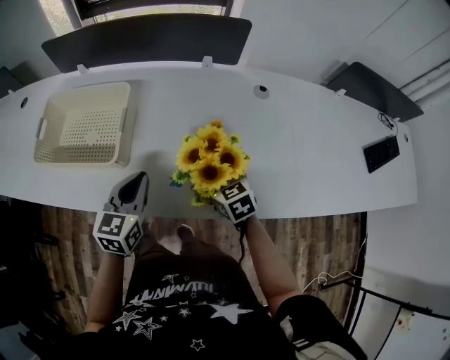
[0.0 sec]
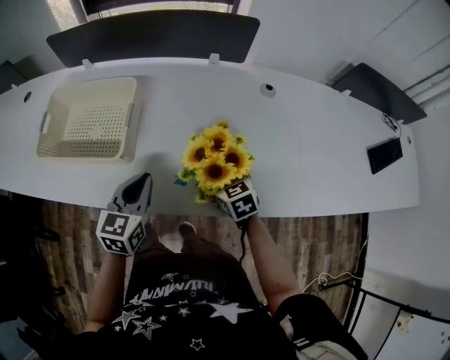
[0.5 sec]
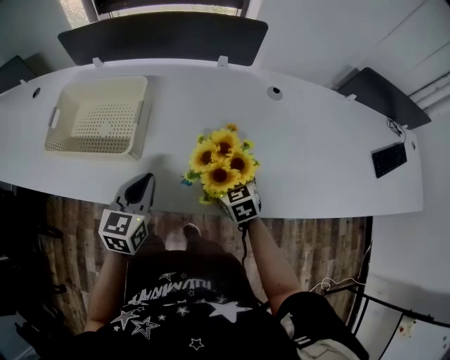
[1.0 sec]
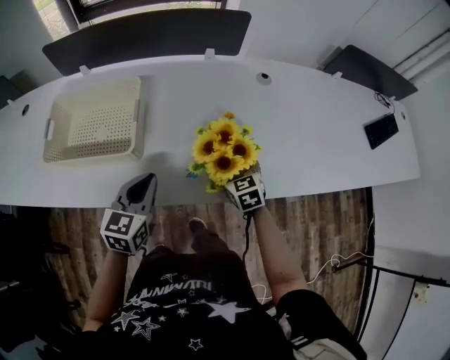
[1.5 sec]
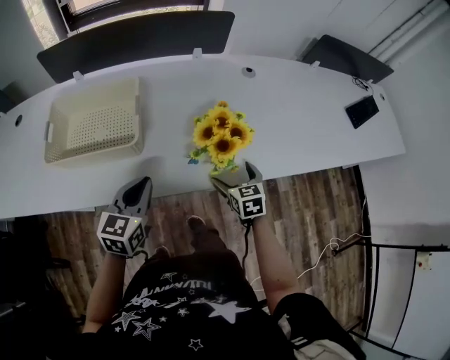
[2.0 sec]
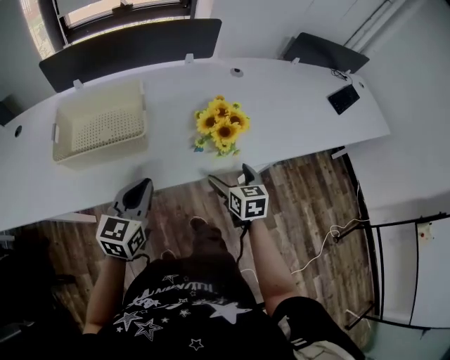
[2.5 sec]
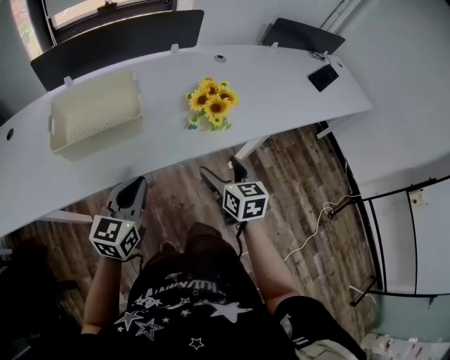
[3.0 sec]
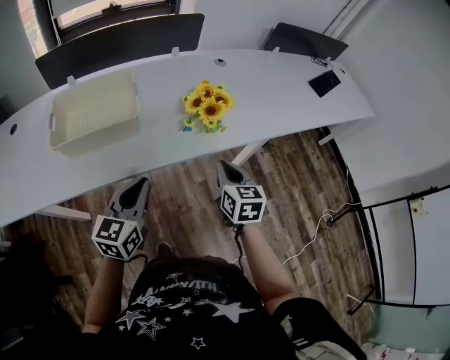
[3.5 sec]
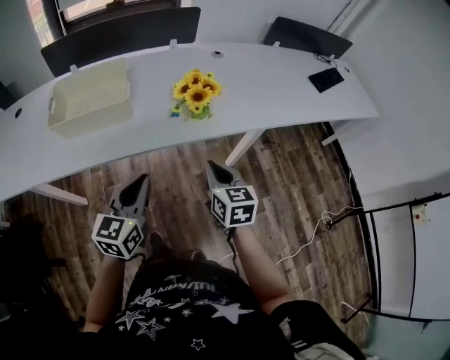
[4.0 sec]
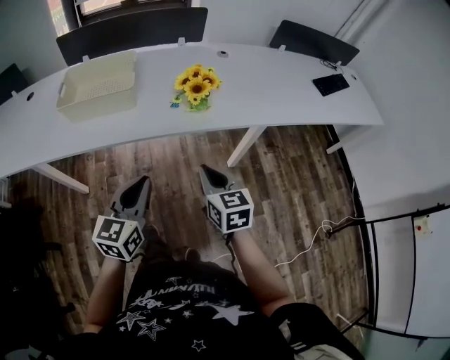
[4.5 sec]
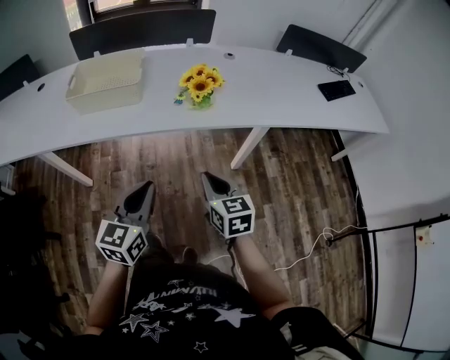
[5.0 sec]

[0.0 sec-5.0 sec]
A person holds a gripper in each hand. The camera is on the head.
0.0 sec to 2.5 sec: The right gripper moves approximately 15 cm, and rotates roughly 40 degrees. Meanwhile the left gripper moves some 15 cm, and swivels approximately 20 degrees.
2.5 sec to 5.0 sec: The right gripper shifts approximately 25 cm backward, and closes; the left gripper is displaced backward and to the right by about 25 cm.

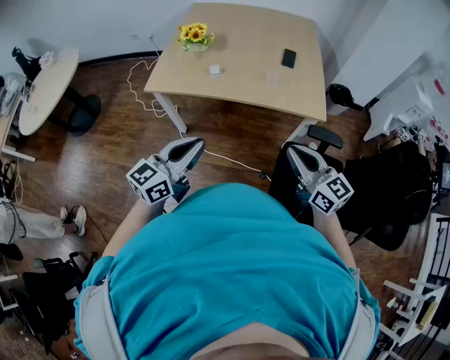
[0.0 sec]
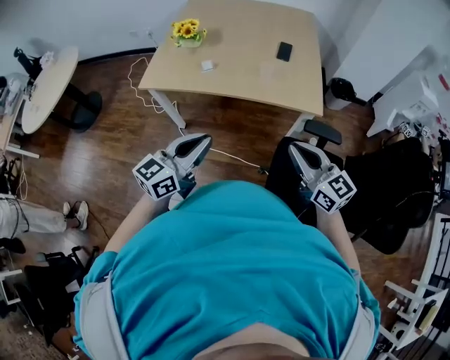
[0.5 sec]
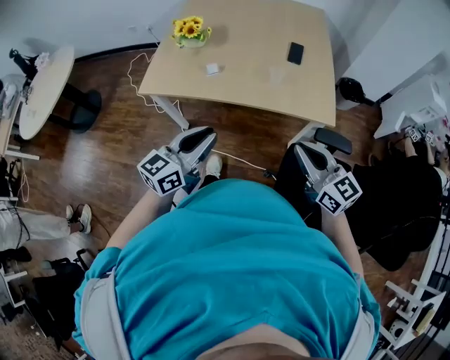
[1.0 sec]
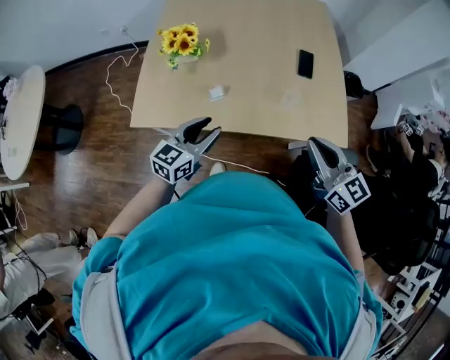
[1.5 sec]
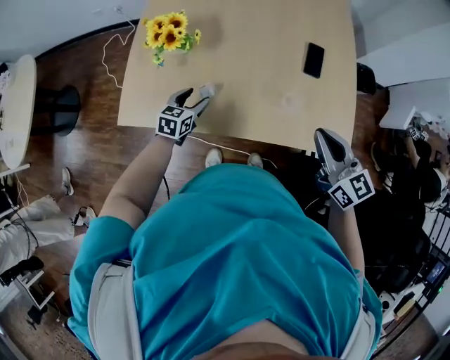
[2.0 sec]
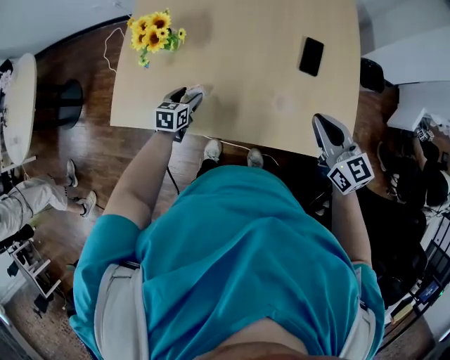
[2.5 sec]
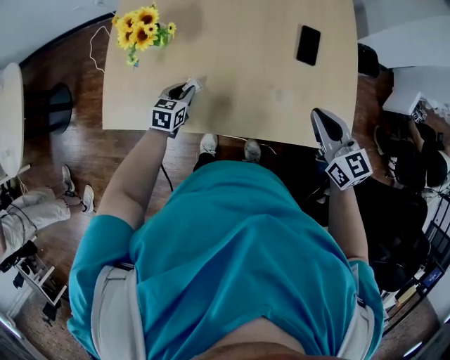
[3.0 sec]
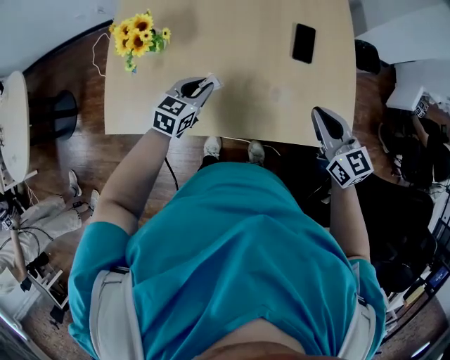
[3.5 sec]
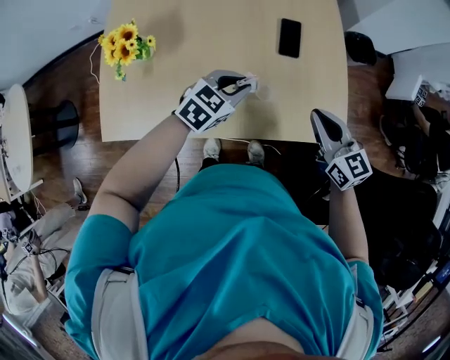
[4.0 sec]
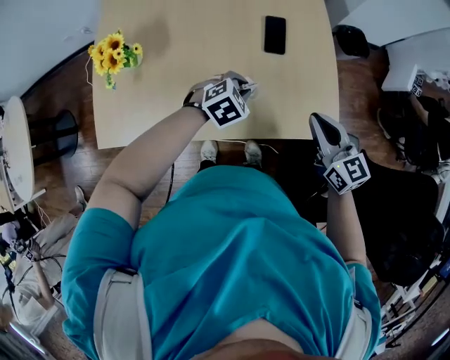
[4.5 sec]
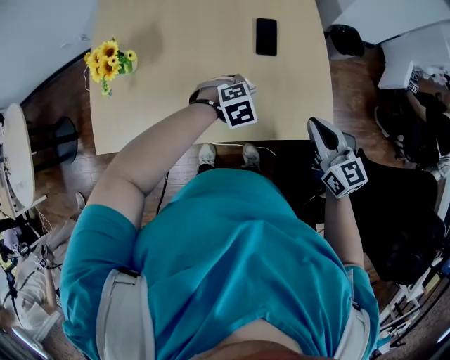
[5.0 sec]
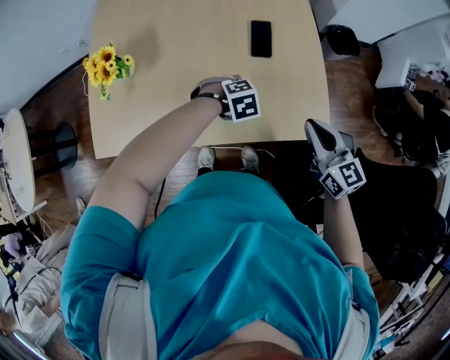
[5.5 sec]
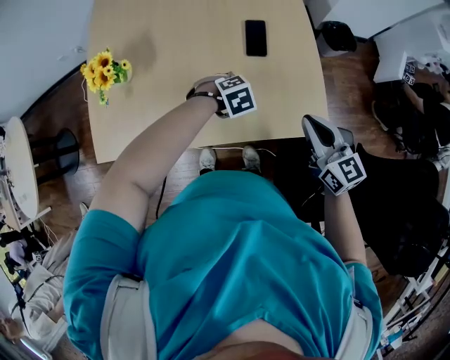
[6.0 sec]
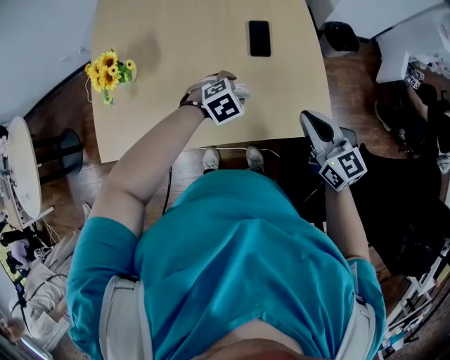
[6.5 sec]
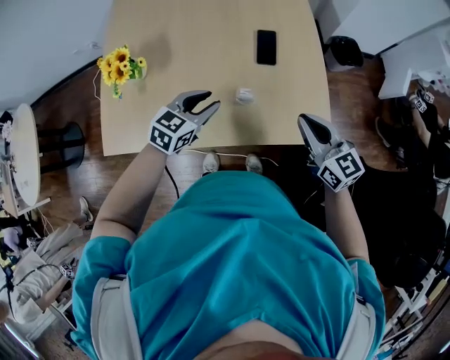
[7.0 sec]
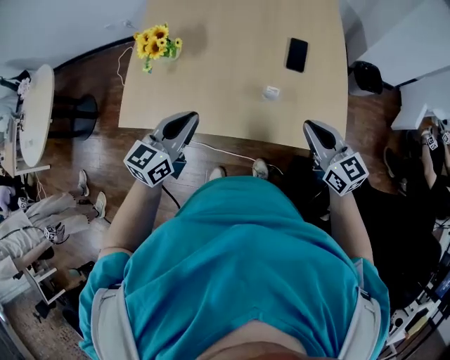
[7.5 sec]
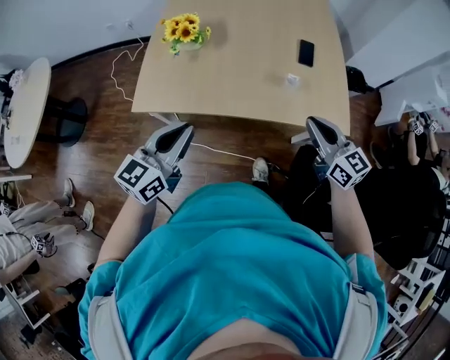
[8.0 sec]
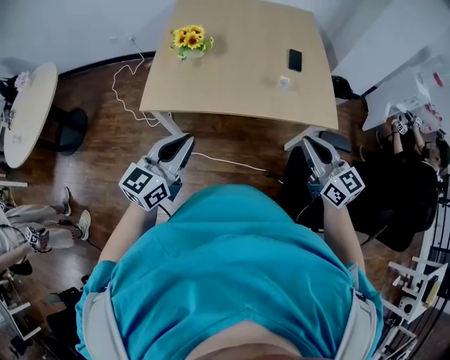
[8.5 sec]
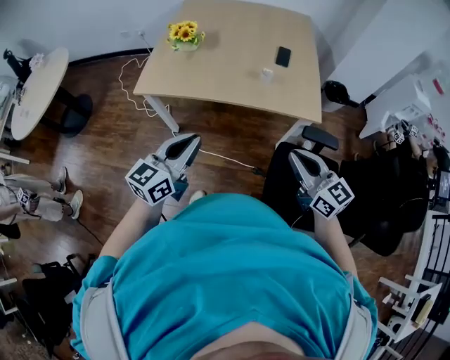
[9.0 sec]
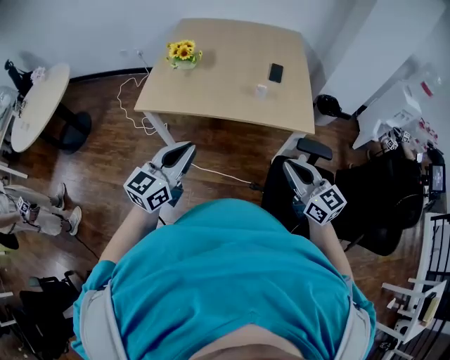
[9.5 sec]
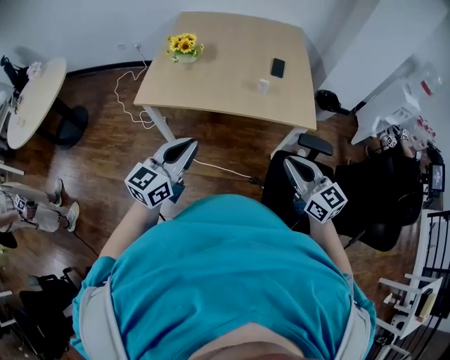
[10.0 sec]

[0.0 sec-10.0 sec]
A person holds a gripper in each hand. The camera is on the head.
0.0 sec to 2.0 sec: The right gripper moves forward, approximately 35 cm. The left gripper travels forward and downward by approximately 60 cm, angles its fingers downward, by roughly 40 degrees, and opens up.
2.0 sec to 4.0 sec: The right gripper goes about 10 cm to the right and downward, while the left gripper travels to the right by about 25 cm, turns by roughly 40 degrees, and closes its fingers.
4.0 sec to 6.0 sec: The left gripper shifts some 10 cm downward, and angles its fingers downward, by some 40 degrees. The right gripper changes place by some 5 cm.
6.0 sec to 8.0 sec: The right gripper shifts by roughly 25 cm. Meanwhile the left gripper changes place by some 50 cm, points its fingers about 70 degrees further upward, and closes up.
8.0 sec to 10.0 sec: The grippers both shift backward by roughly 20 cm.

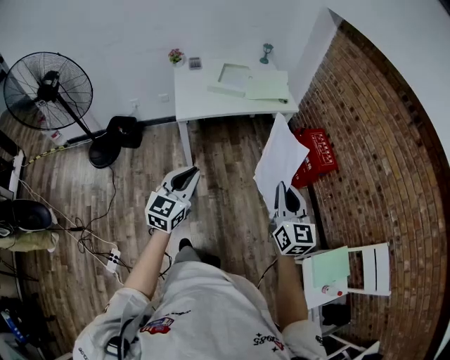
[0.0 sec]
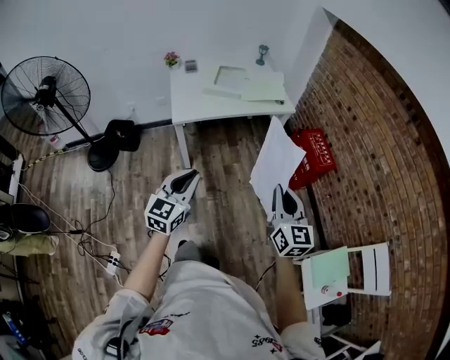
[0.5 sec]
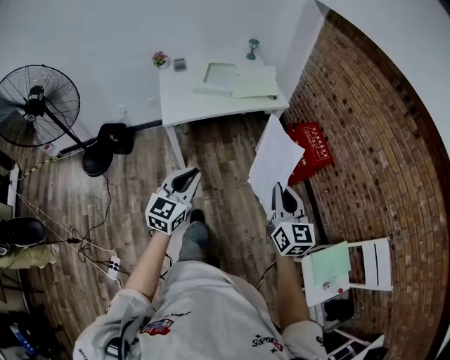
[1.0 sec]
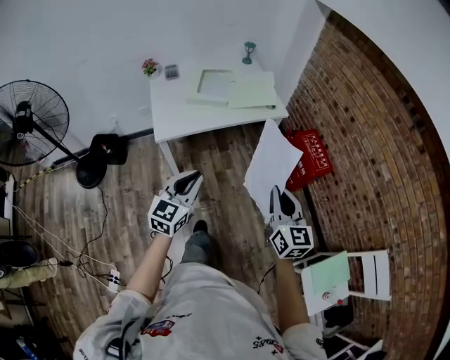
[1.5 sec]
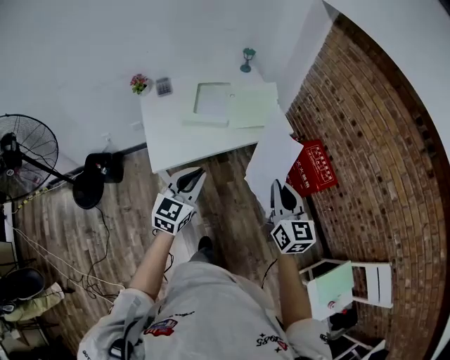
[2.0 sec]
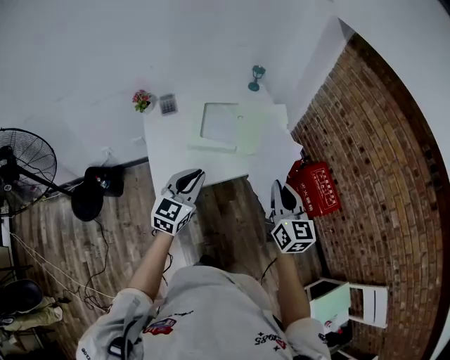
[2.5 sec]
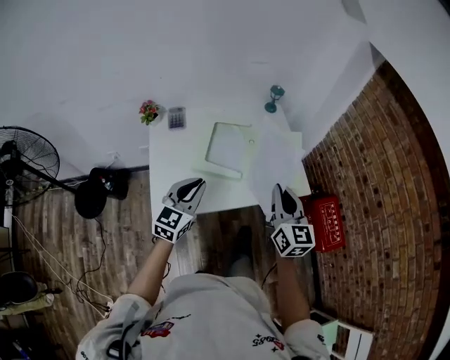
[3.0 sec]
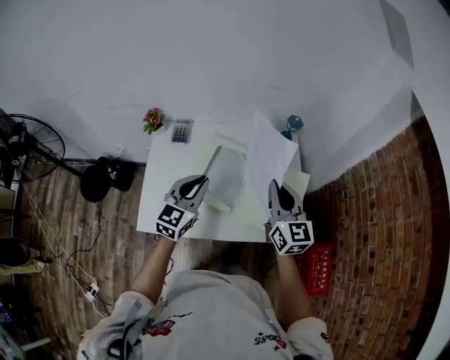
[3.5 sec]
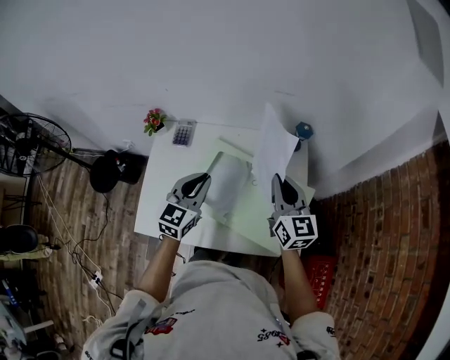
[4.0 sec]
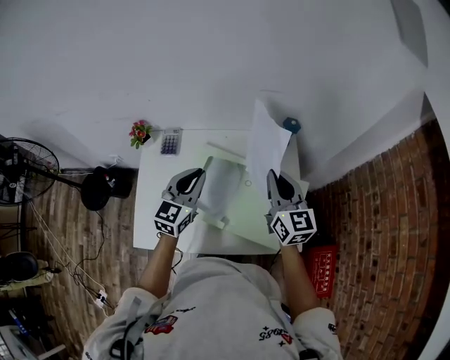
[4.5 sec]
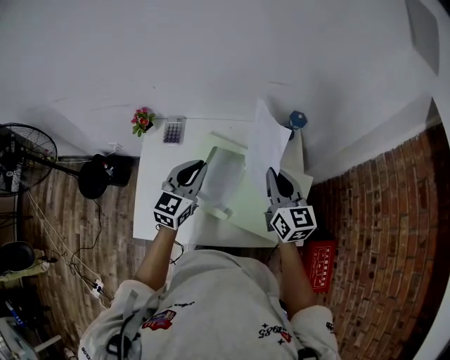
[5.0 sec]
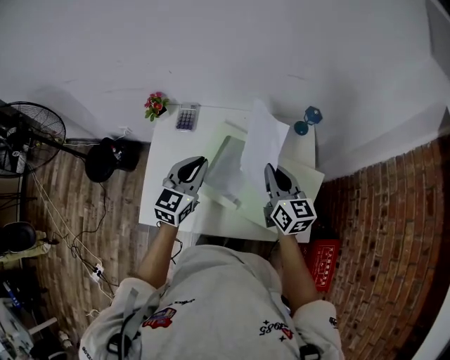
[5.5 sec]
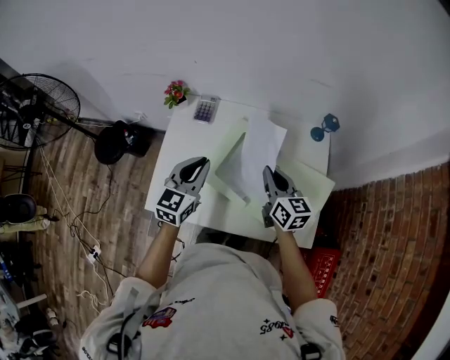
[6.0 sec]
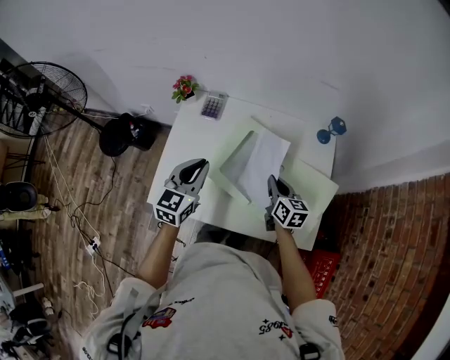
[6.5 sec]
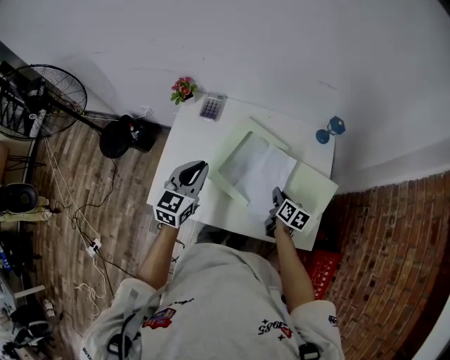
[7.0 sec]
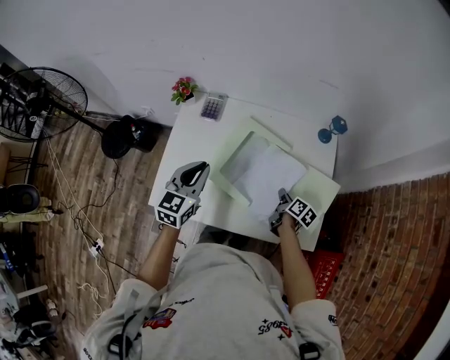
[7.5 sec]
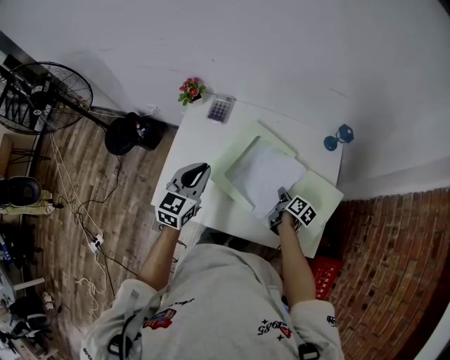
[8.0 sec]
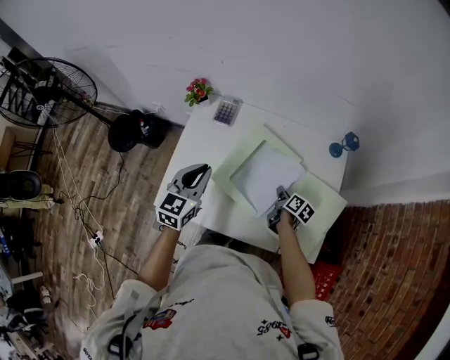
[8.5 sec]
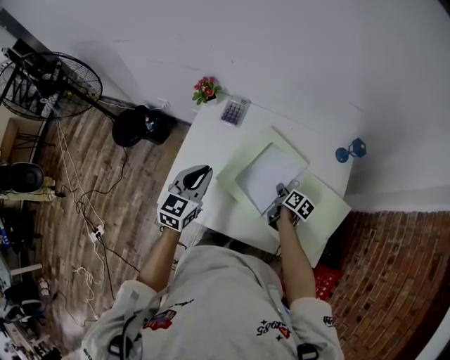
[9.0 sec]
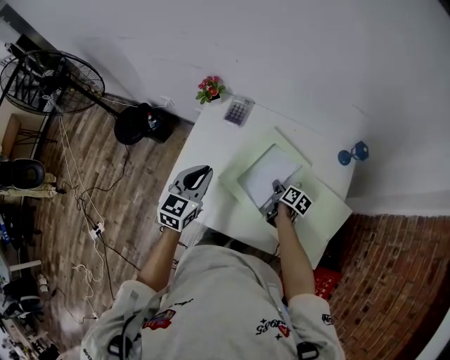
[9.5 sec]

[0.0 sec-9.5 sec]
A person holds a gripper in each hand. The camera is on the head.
0.0 sec to 2.0 sec: The grippers both shift forward by some 30 cm.
2.0 sec to 4.0 sec: Both grippers are carried roughly 50 cm. The right gripper turns by roughly 30 degrees, while the left gripper rotates approximately 30 degrees.
4.0 sec to 5.5 sec: The left gripper is displaced to the left by about 5 cm. Meanwhile the right gripper heads to the left and downward, covering approximately 10 cm.
5.5 sec to 7.5 sec: The right gripper moves downward, some 25 cm, and rotates around the line of its fingers by some 50 degrees, clockwise from behind, while the left gripper is displaced to the left by some 5 cm.
7.5 sec to 9.5 sec: The right gripper goes roughly 15 cm to the left and forward, while the left gripper shifts approximately 5 cm to the left.

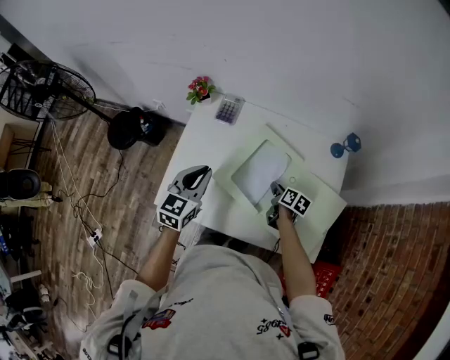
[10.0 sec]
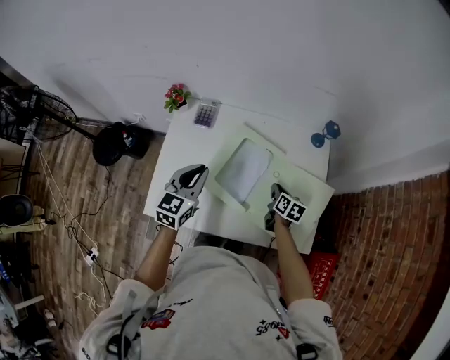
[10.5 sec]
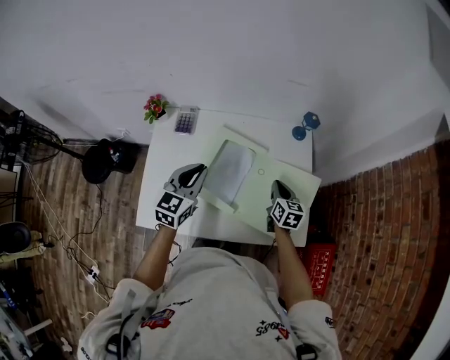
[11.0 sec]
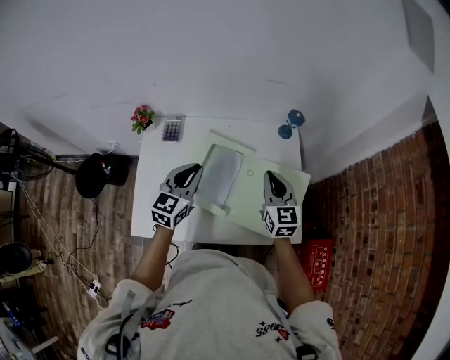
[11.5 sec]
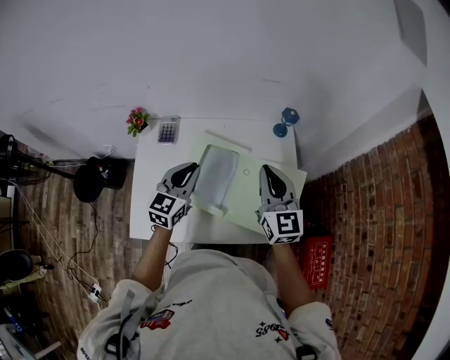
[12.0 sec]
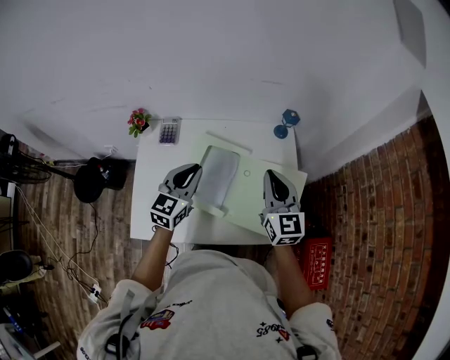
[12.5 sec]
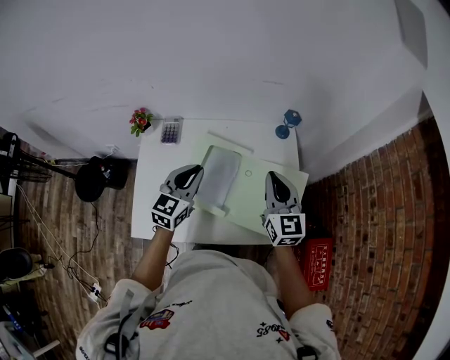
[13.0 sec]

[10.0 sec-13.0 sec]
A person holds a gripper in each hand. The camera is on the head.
10.0 sec to 11.5 sec: The right gripper heads upward, covering roughly 25 cm, tilts its fingers about 30 degrees upward, and closes its fingers. Meanwhile the left gripper shifts roughly 15 cm to the right and forward.
11.5 sec to 13.0 sec: The right gripper heads upward, covering some 5 cm.
